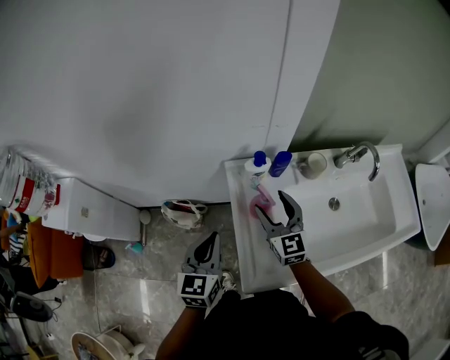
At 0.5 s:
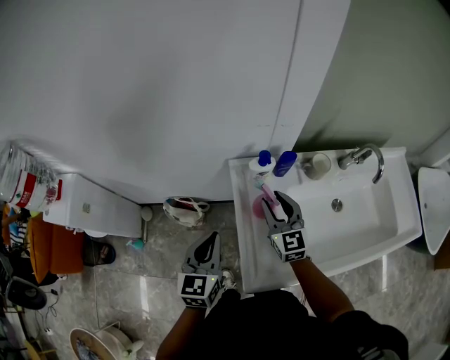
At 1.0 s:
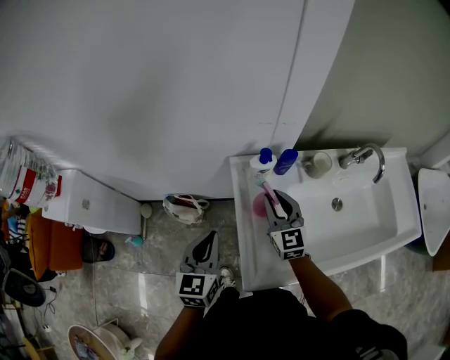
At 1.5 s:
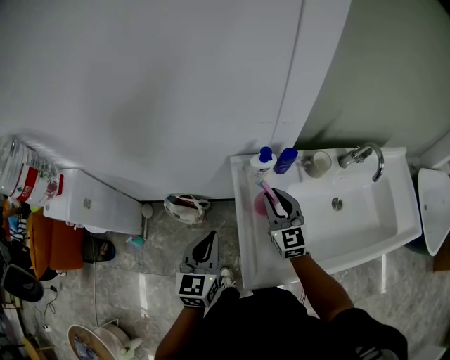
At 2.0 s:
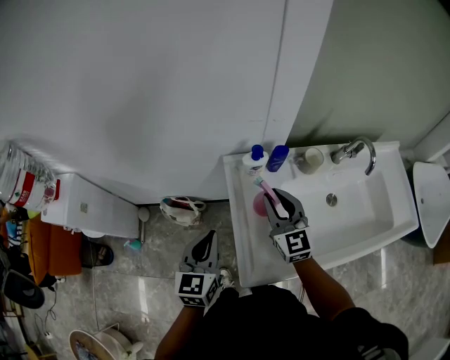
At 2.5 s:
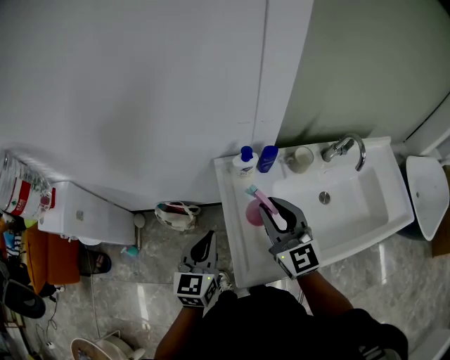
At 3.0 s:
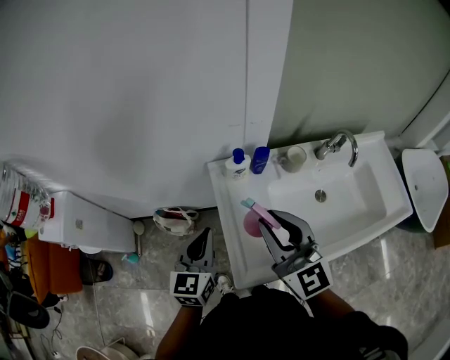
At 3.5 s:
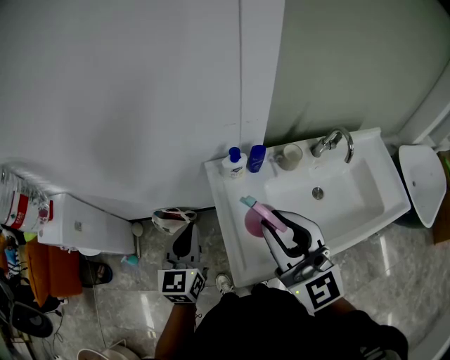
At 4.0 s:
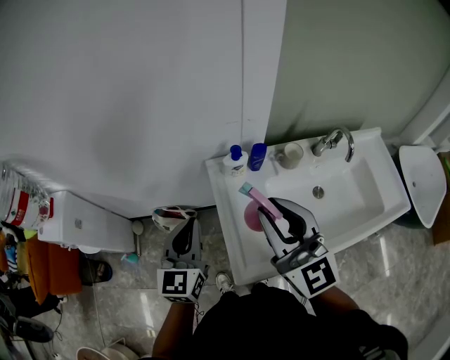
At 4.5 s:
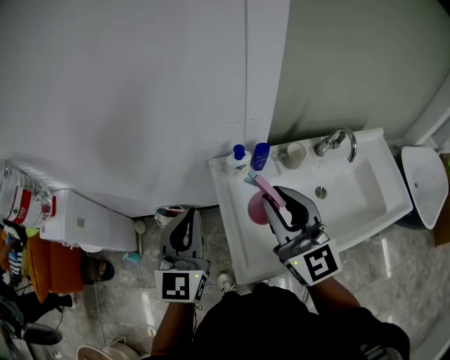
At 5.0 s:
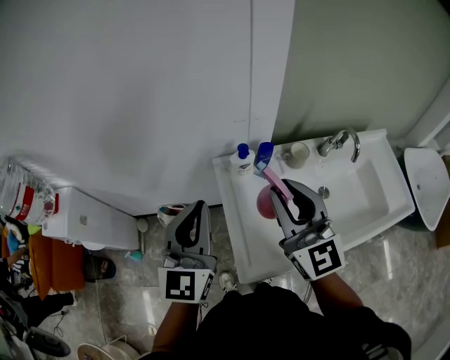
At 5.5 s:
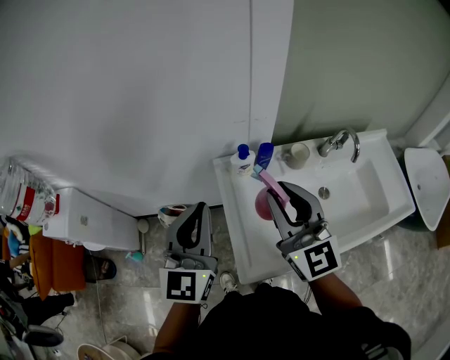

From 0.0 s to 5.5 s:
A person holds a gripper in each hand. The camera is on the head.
From 0.0 s to 2.0 s: The right gripper closes.
From 2.0 s to 3.5 s: The right gripper goes approximately 25 cm upward and backward, while the left gripper moves about 5 cm.
From 3.5 s to 5.5 s: The right gripper ends up approximately 5 cm from where it was. Meanwhile the left gripper heads upward, covering some 15 cm.

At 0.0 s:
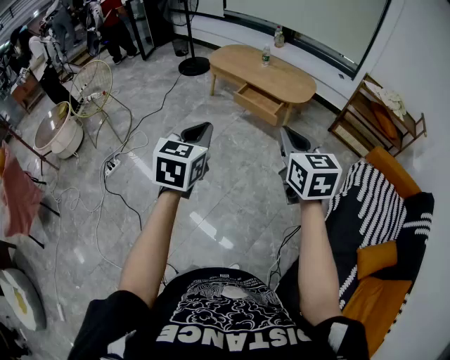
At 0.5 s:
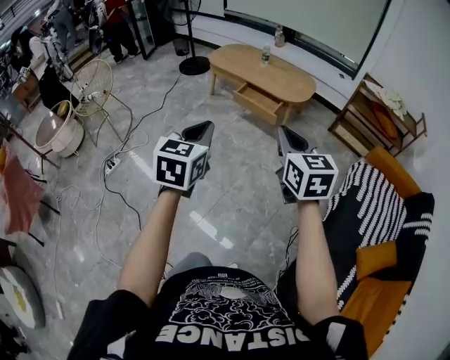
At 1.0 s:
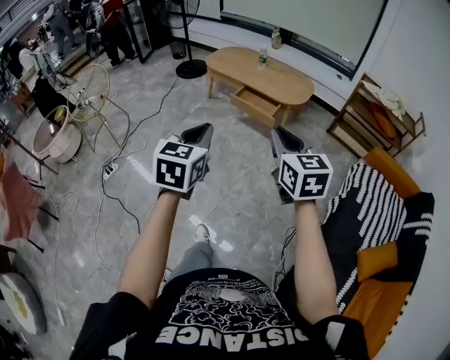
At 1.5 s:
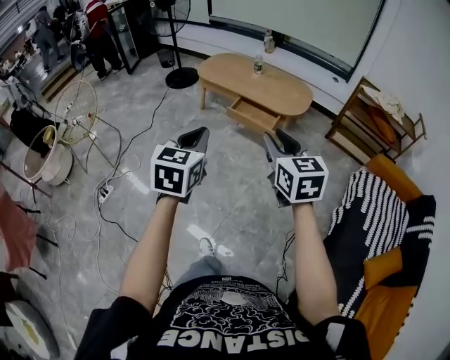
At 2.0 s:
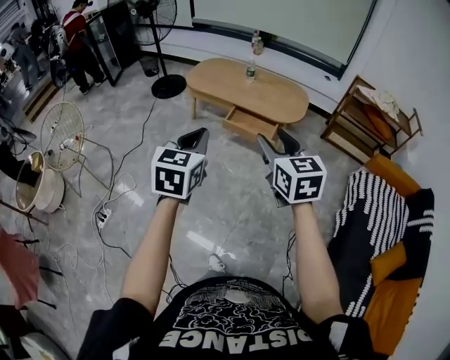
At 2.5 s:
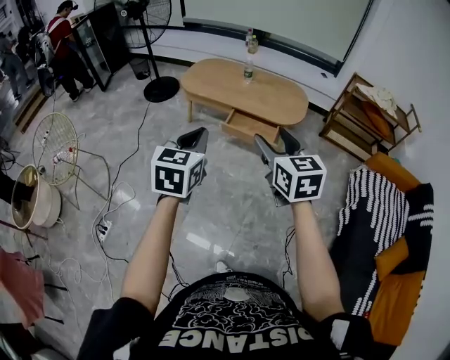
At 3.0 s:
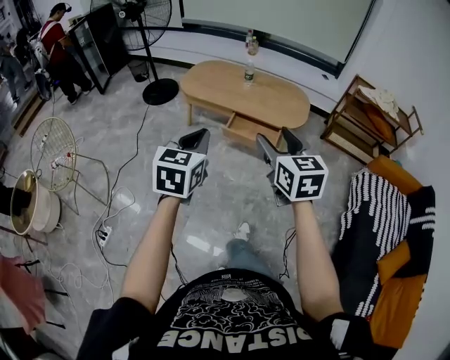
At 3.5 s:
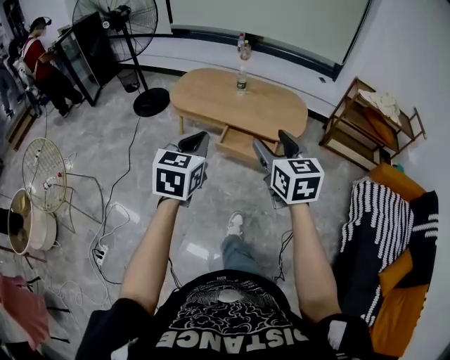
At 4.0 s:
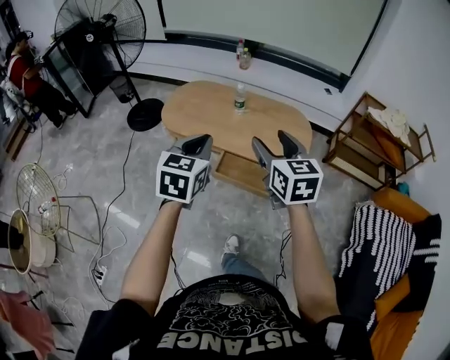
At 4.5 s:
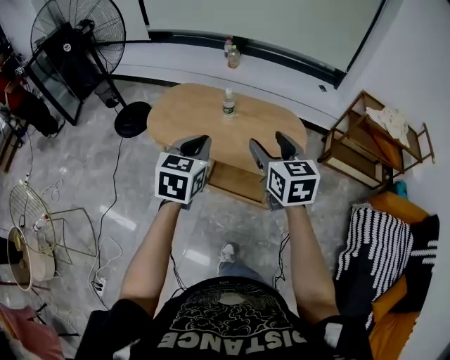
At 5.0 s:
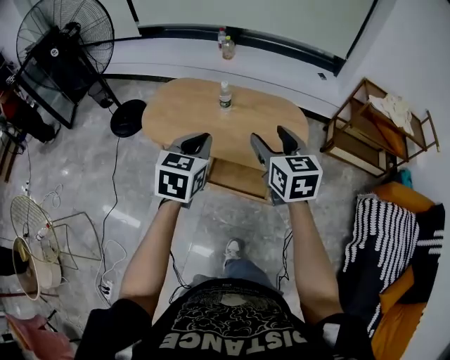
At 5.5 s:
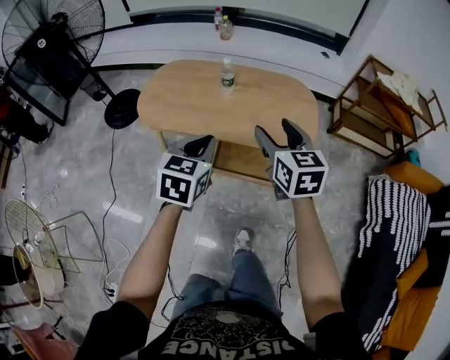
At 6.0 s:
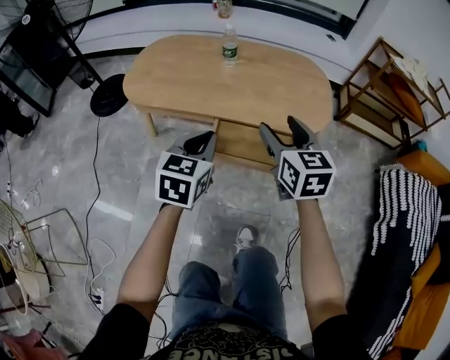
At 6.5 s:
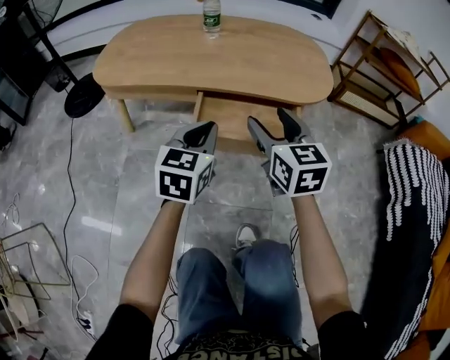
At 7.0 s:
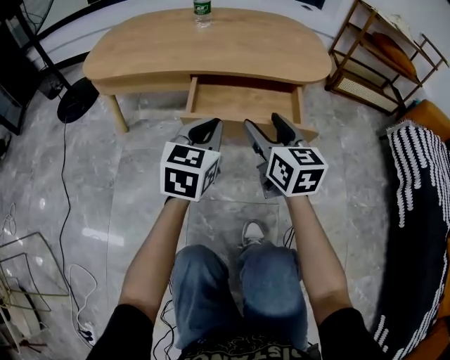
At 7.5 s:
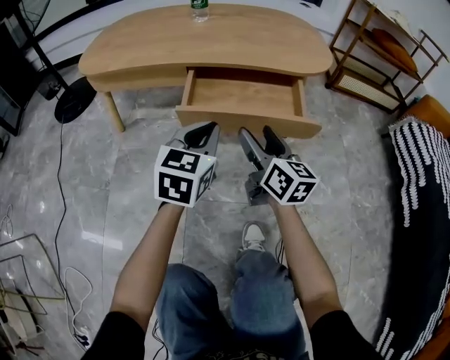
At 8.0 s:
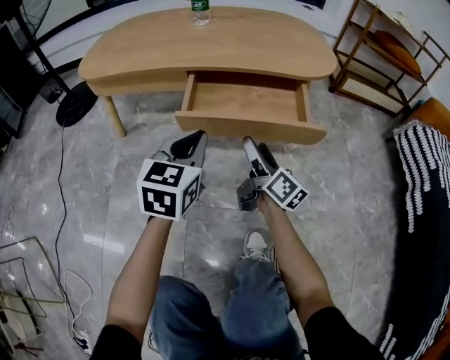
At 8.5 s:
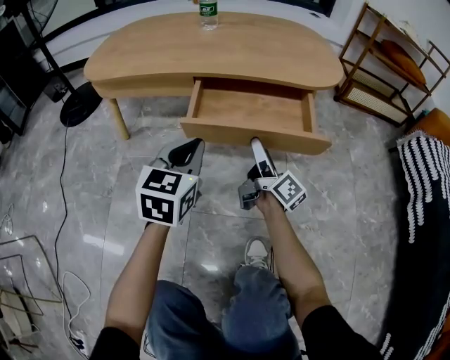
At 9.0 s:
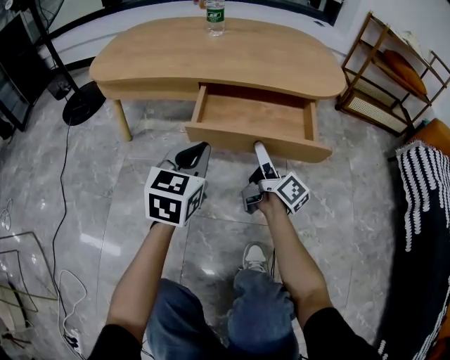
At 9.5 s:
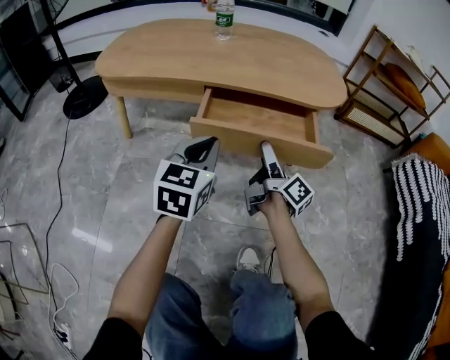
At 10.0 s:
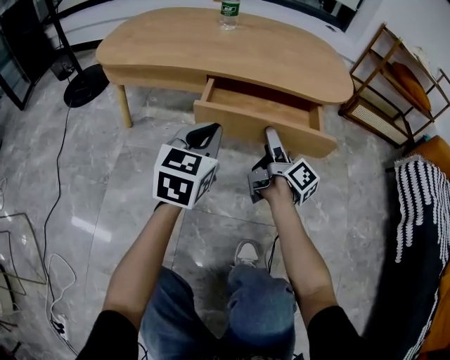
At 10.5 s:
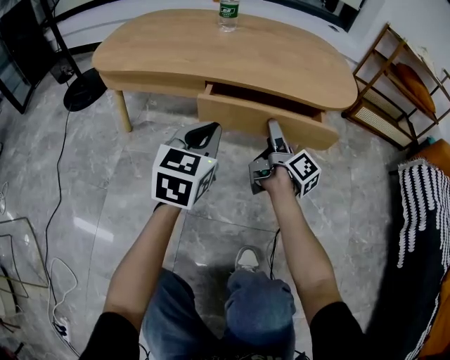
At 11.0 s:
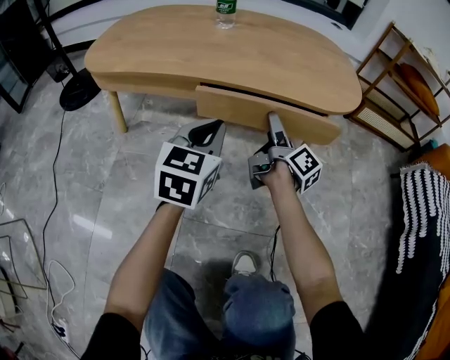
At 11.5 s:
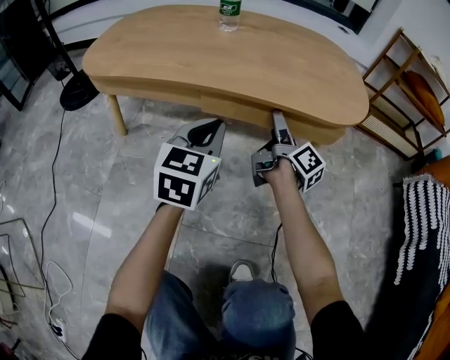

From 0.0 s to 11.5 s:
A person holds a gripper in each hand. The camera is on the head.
From 0.0 s to 2.0 s: The right gripper goes some 25 cm forward and to the left, and opens up; the left gripper moves forward, about 25 cm.
From 2.0 s to 4.0 s: The two grippers travel together, forward, roughly 40 cm.
From 4.0 s to 6.0 s: The grippers both shift downward by roughly 30 cm.
From 6.0 s to 7.5 s: Both grippers travel together downward, approximately 25 cm. The right gripper turns by some 30 degrees.
From 7.5 s to 9.5 s: The right gripper travels downward and forward by approximately 10 cm, and rolls clockwise, seen from behind, by some 40 degrees.
From 9.5 s to 11.5 s: Both grippers travel together forward, roughly 15 cm.

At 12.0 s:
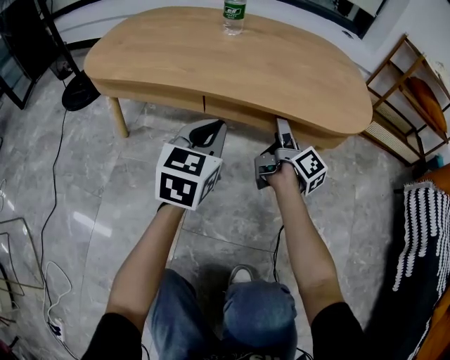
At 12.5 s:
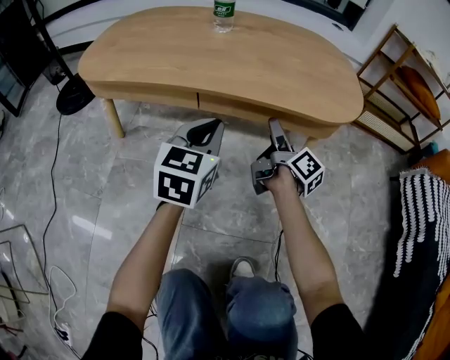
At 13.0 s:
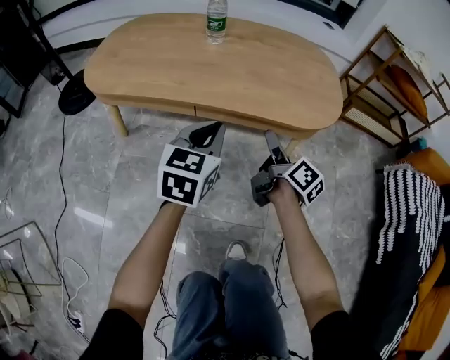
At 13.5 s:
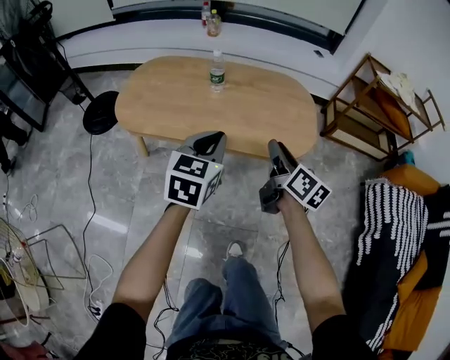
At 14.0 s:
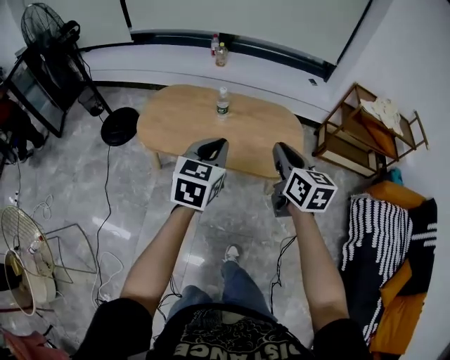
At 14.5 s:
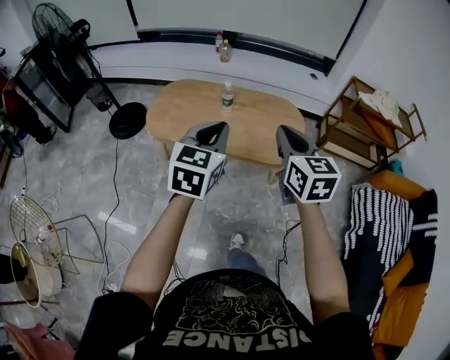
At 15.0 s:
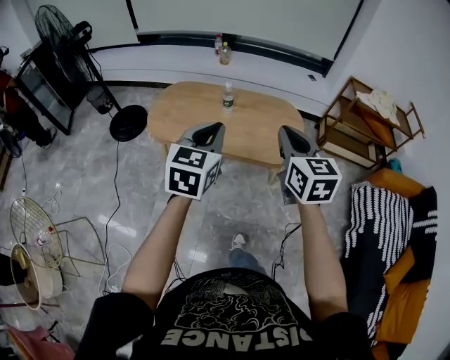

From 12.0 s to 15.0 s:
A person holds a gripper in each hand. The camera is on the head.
From 12.0 s to 13.5 s: The two grippers go some 35 cm upward. The right gripper swivels about 30 degrees, and closes up.
From 13.5 s to 15.0 s: The right gripper is displaced upward by some 30 cm, and rolls counterclockwise, seen from behind, by some 40 degrees. Meanwhile the left gripper goes some 30 cm upward and backward.

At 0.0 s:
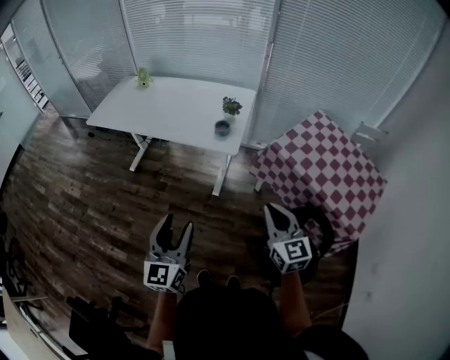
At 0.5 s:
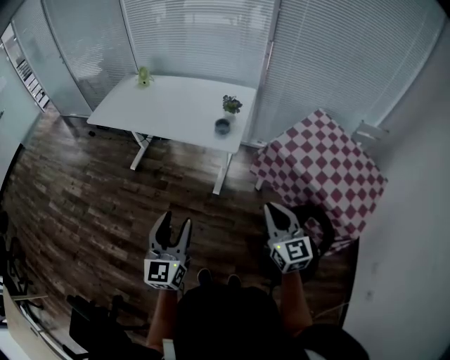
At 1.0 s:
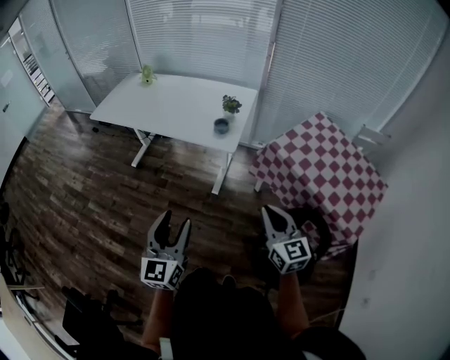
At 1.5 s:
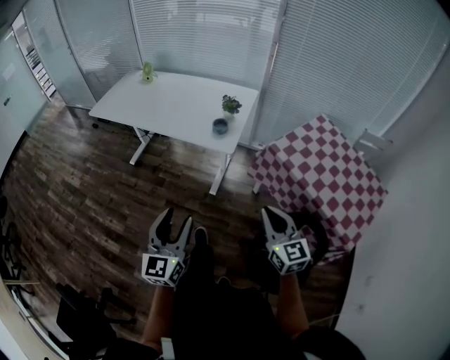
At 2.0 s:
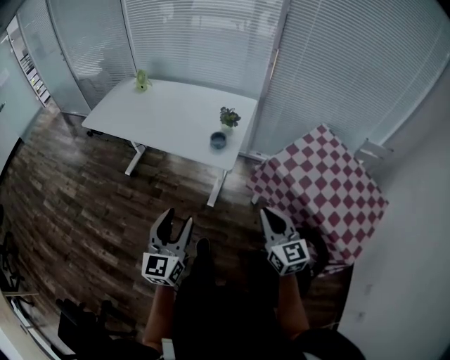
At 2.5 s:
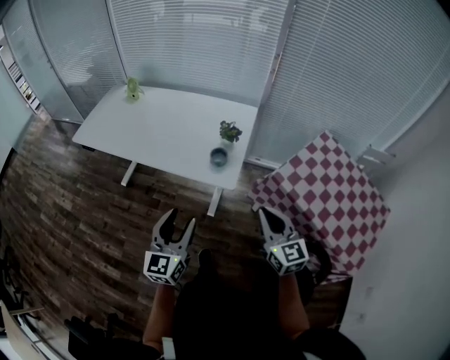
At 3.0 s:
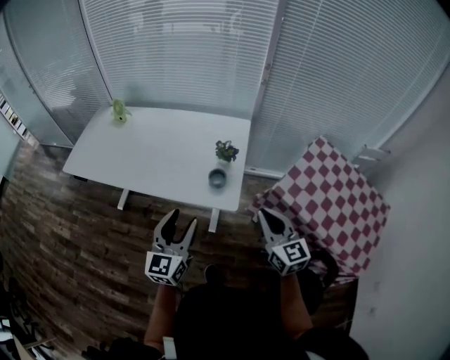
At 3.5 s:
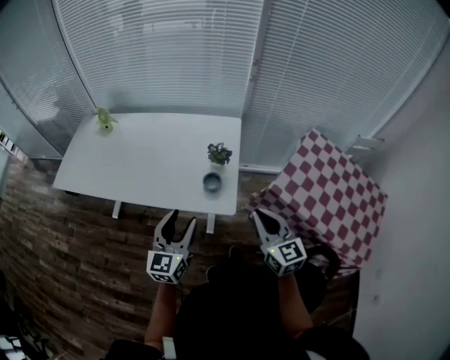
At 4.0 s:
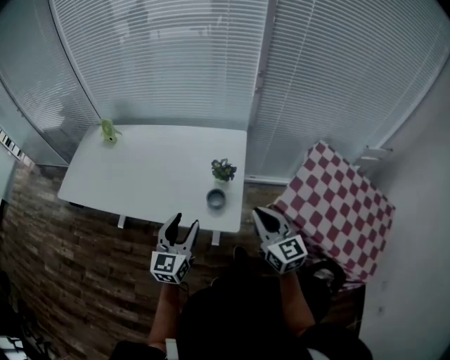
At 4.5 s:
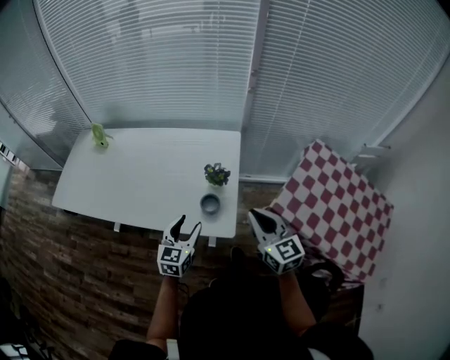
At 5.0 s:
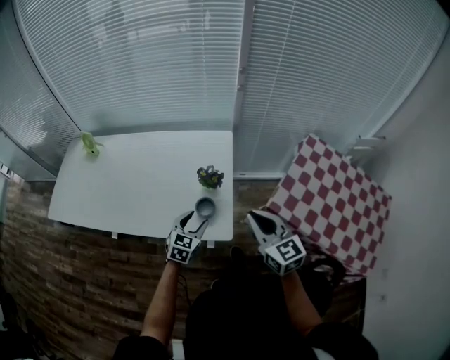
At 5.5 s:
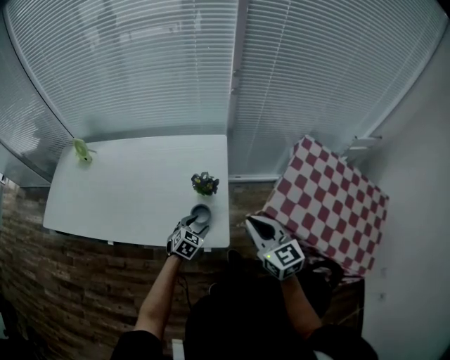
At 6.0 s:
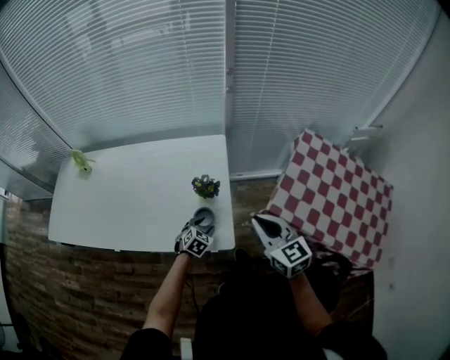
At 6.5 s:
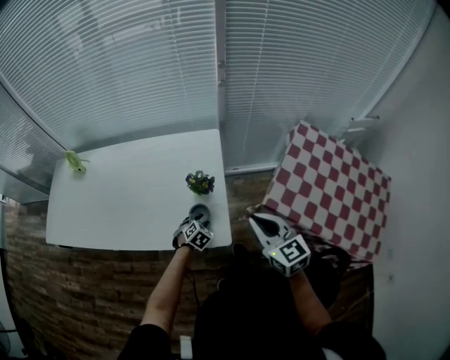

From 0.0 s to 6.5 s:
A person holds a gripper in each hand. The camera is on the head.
From 0.0 s to 2.0 s: The two grippers go roughly 10 cm forward.
From 2.0 s to 4.5 s: The two grippers go about 35 cm forward. The left gripper turns by roughly 30 degrees.
From 4.5 s to 6.5 s: The left gripper shifts approximately 25 cm downward, and angles its fingers downward, by some 40 degrees.
